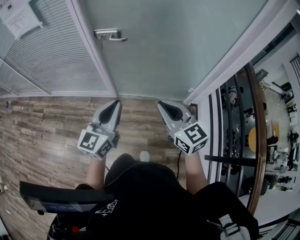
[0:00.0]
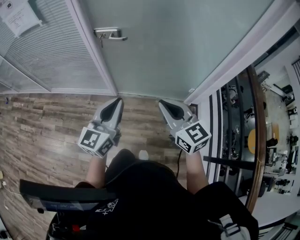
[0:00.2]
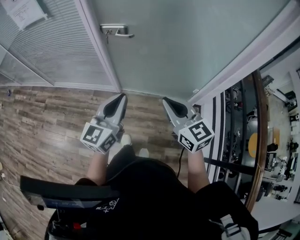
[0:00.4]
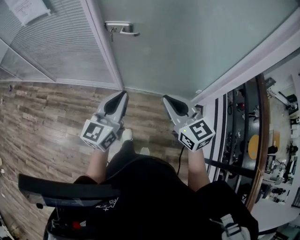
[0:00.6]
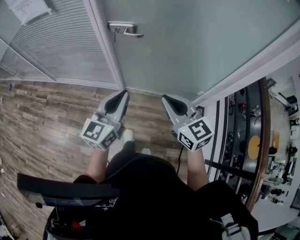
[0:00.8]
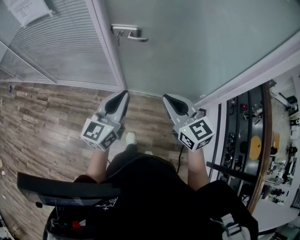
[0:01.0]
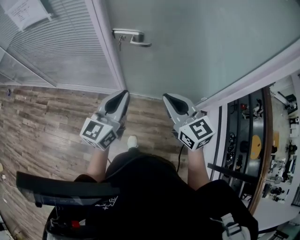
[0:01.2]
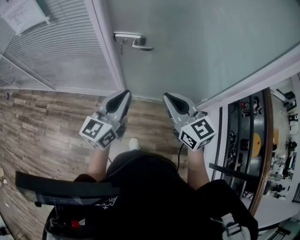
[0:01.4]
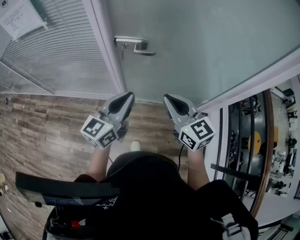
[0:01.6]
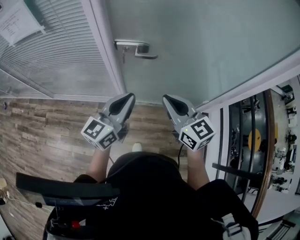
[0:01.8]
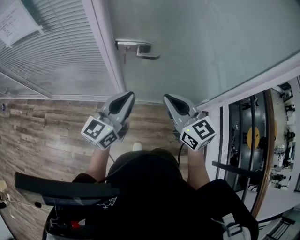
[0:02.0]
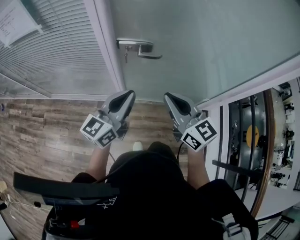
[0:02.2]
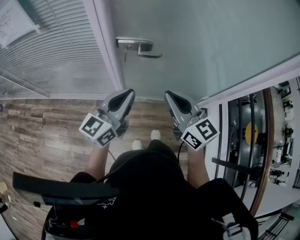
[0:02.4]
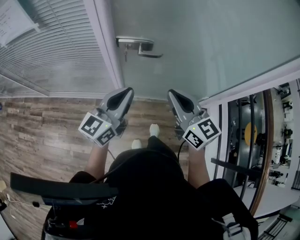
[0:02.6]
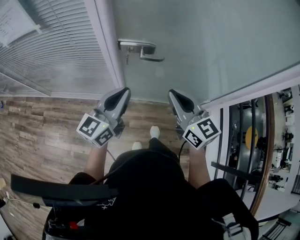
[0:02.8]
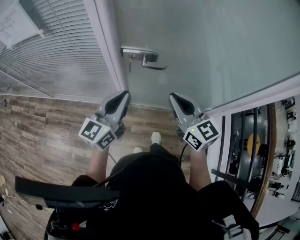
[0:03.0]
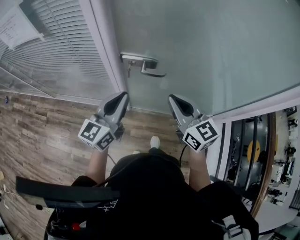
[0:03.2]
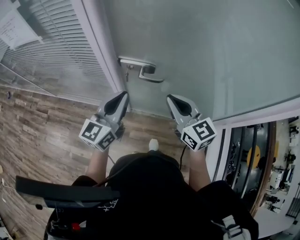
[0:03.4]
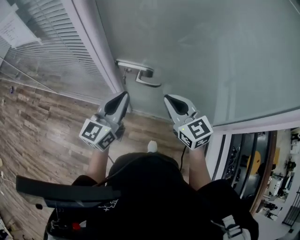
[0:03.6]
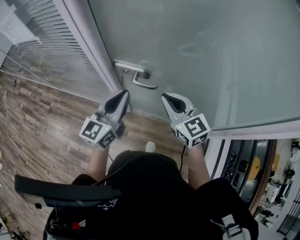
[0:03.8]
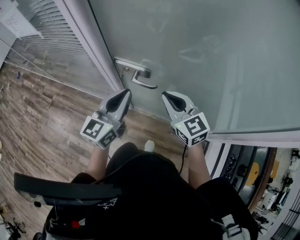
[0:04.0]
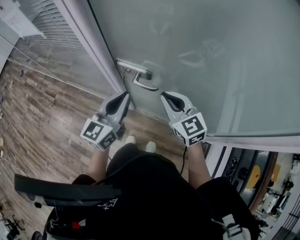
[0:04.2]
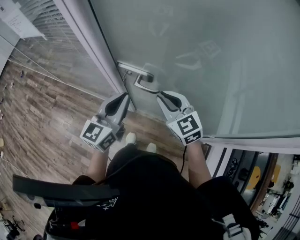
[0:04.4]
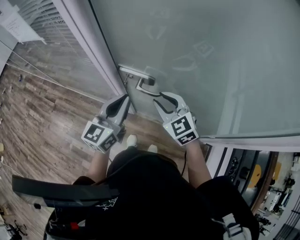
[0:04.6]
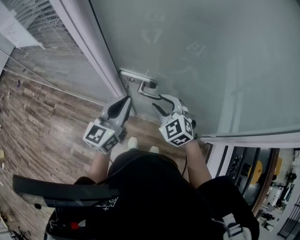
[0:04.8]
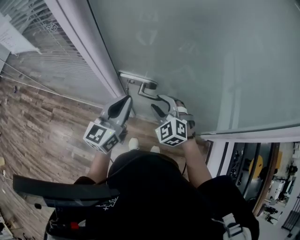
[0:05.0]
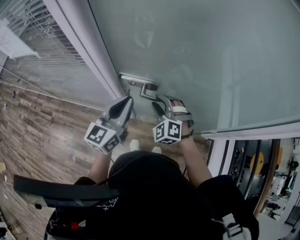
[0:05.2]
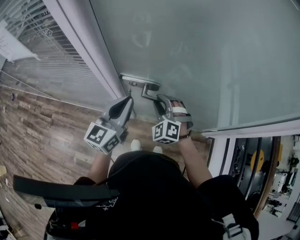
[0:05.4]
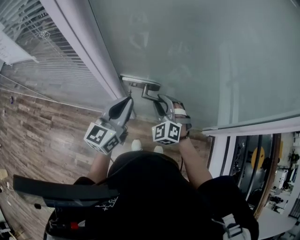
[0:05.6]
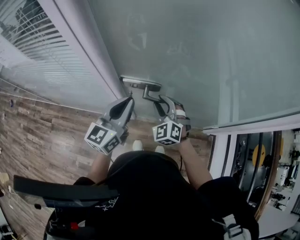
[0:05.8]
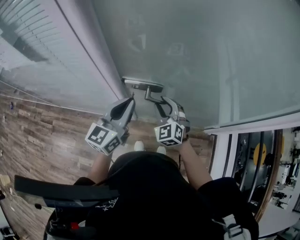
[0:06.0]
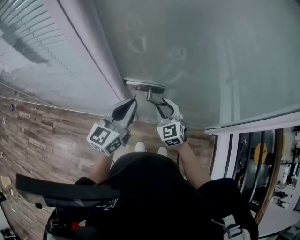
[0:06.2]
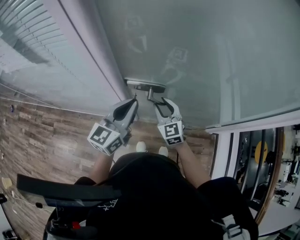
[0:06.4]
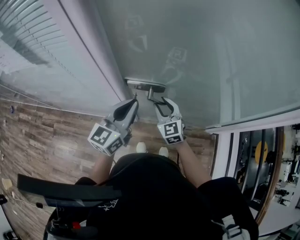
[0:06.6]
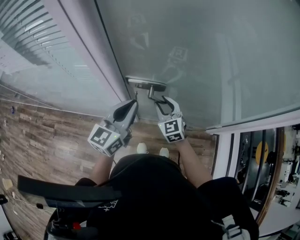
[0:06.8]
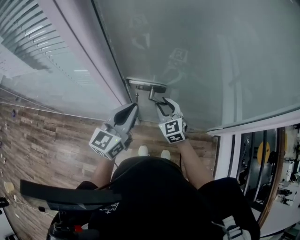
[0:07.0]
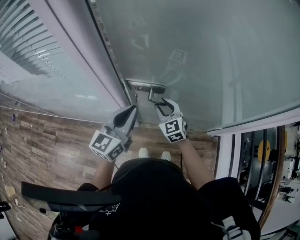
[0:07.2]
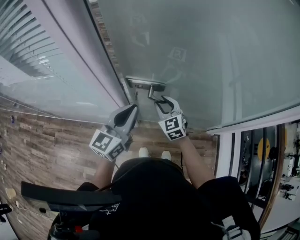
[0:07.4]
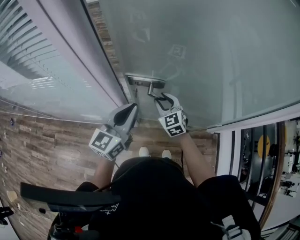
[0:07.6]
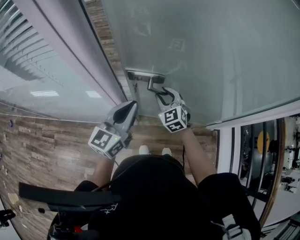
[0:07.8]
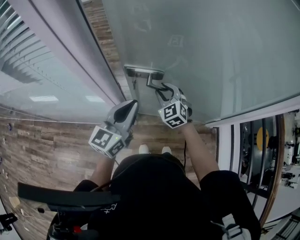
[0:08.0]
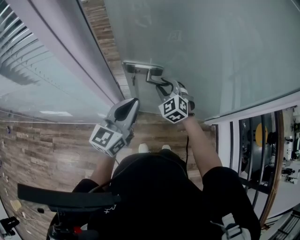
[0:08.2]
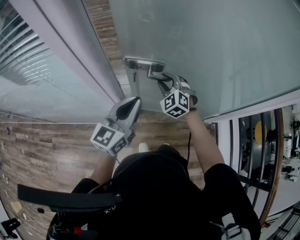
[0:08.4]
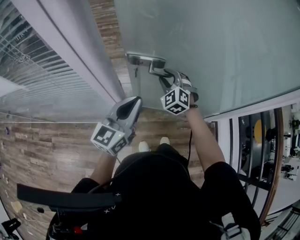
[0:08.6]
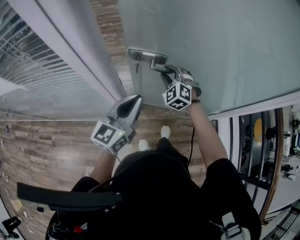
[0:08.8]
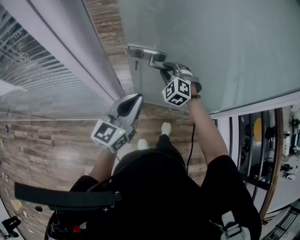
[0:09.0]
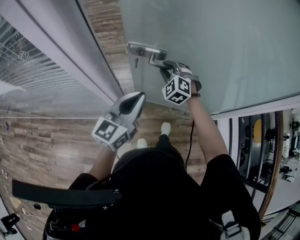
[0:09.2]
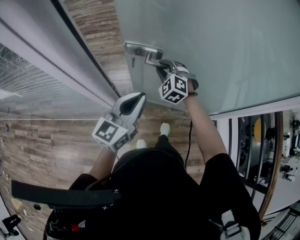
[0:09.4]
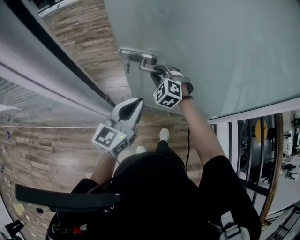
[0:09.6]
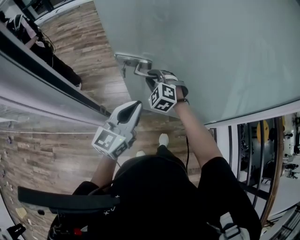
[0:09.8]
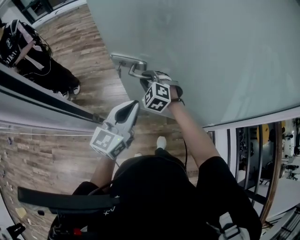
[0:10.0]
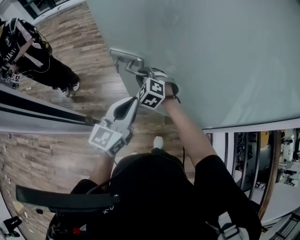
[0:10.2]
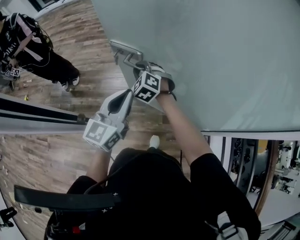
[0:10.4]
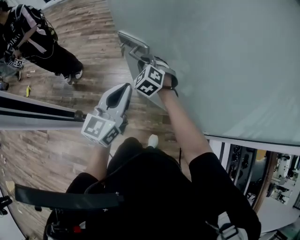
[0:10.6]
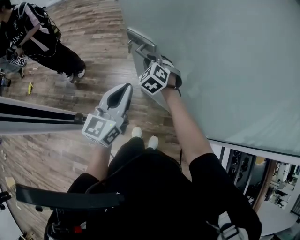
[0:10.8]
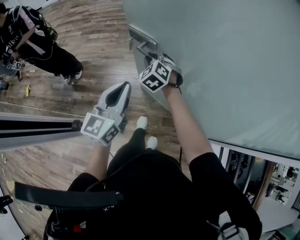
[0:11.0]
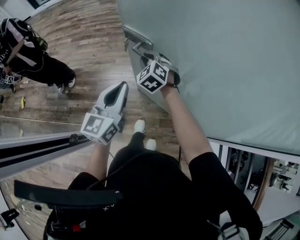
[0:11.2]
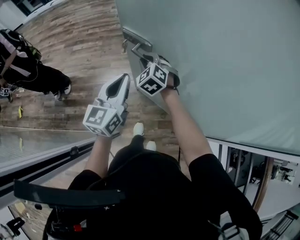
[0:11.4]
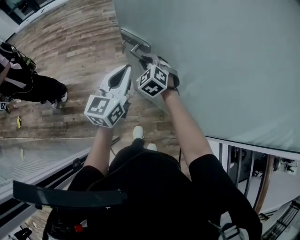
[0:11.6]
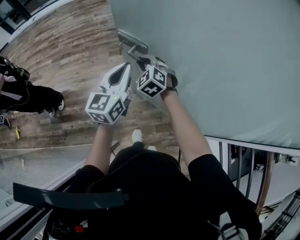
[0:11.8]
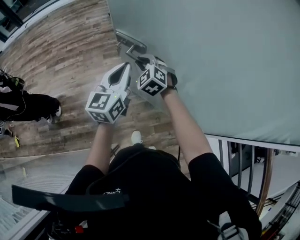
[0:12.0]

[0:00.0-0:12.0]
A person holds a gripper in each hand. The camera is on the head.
0:00.0 to 0:01.6: The left gripper is displaced forward by roughly 15 cm. The right gripper goes some 15 cm forward and to the left.
0:01.6 to 0:03.0: The right gripper shifts approximately 10 cm forward; the left gripper goes about 10 cm forward and to the left.
0:03.0 to 0:04.4: The right gripper moves forward and downward, roughly 15 cm, and changes its angle by about 30 degrees; the left gripper travels forward and to the right by about 10 cm.
0:04.4 to 0:06.0: The left gripper changes place by some 5 cm. Meanwhile the right gripper shifts roughly 10 cm downward, and rotates roughly 30 degrees.
0:06.0 to 0:07.6: The right gripper goes approximately 5 cm forward.
0:07.6 to 0:09.0: The right gripper moves forward, some 10 cm, and swivels some 40 degrees.
0:09.0 to 0:10.4: The right gripper shifts about 15 cm forward. The left gripper moves forward and to the right, approximately 15 cm.
0:10.4 to 0:12.0: The right gripper shifts about 25 cm forward and to the right. Meanwhile the left gripper moves forward, approximately 30 cm.

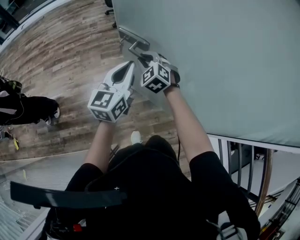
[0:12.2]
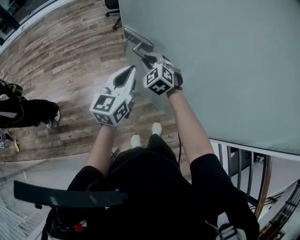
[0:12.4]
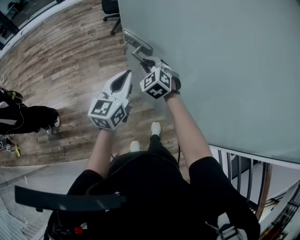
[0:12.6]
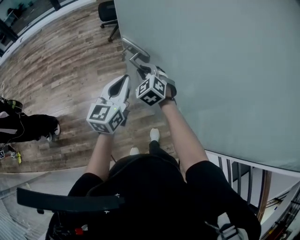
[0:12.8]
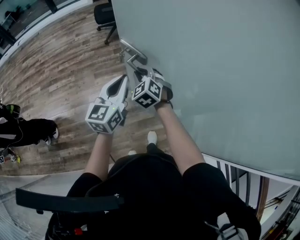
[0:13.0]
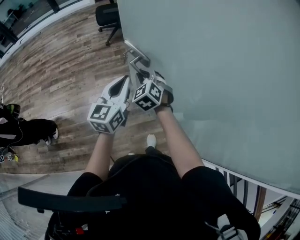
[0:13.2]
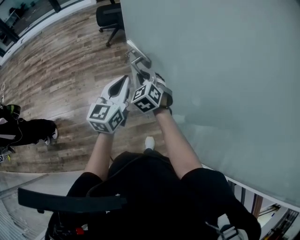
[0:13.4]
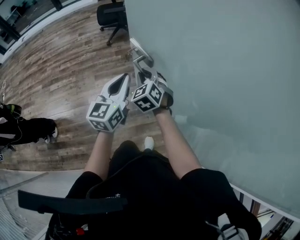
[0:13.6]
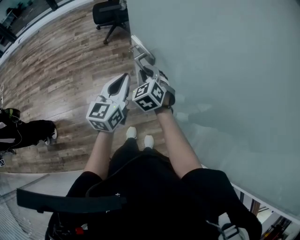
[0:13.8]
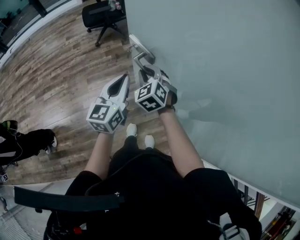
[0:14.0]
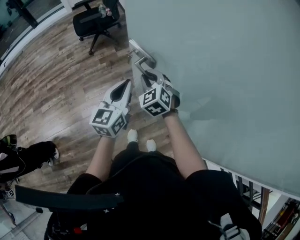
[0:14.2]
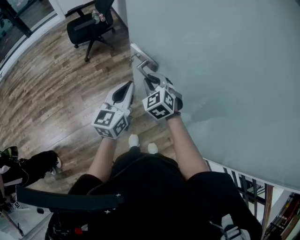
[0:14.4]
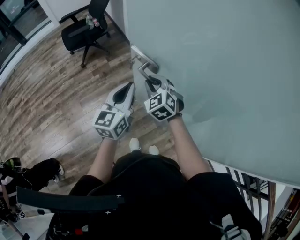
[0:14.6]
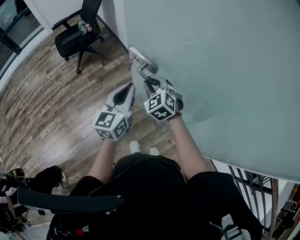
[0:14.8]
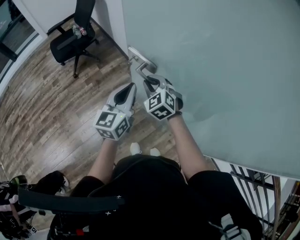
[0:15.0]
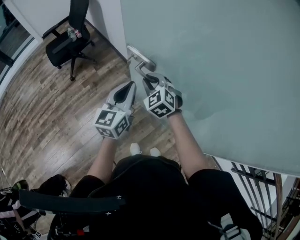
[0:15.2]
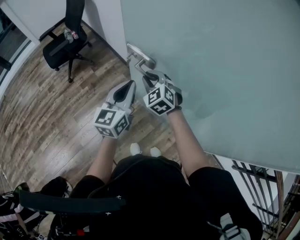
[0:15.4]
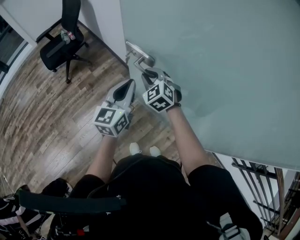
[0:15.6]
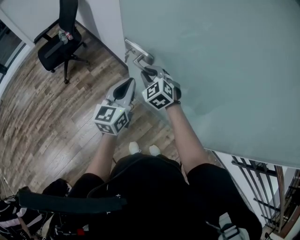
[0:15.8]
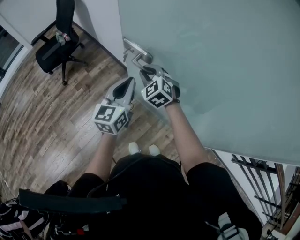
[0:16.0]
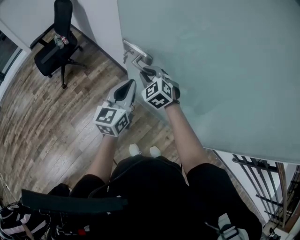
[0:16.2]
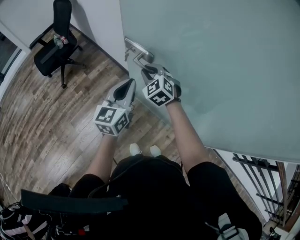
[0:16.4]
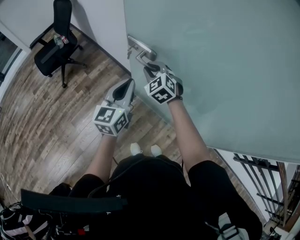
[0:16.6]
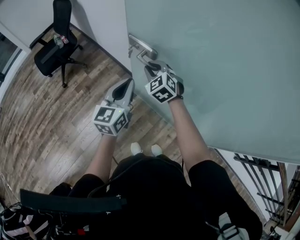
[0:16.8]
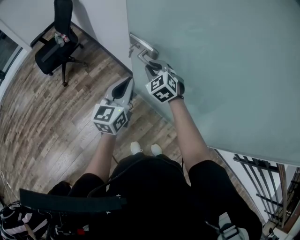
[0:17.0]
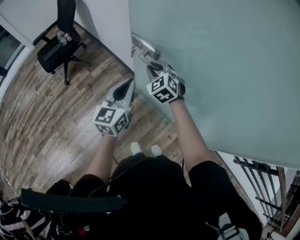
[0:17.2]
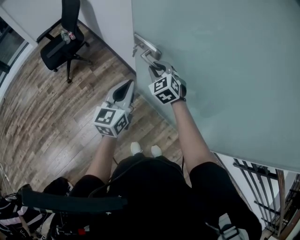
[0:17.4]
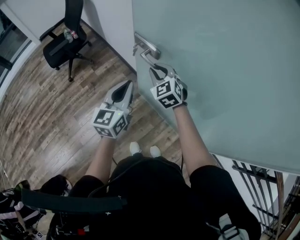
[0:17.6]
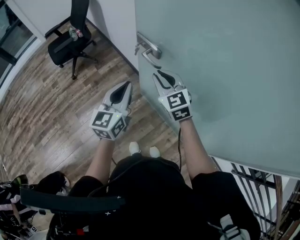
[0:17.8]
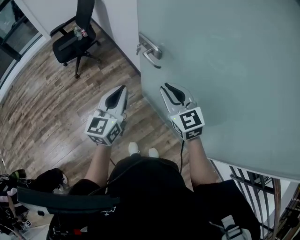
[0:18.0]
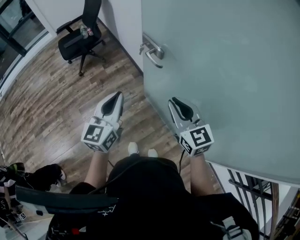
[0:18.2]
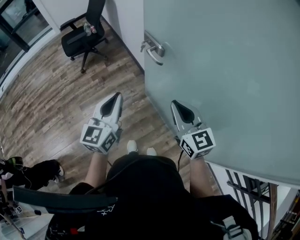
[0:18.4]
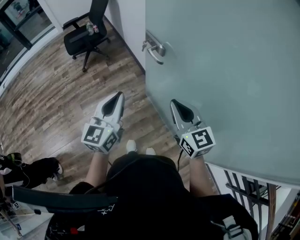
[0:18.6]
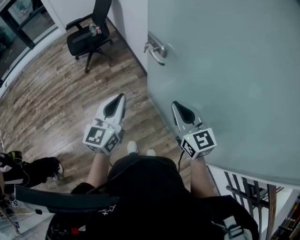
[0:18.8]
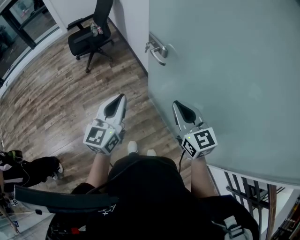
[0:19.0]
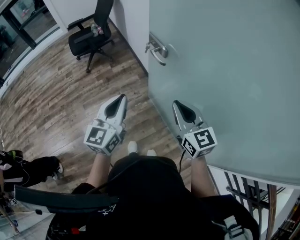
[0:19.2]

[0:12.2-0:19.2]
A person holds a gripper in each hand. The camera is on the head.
0:12.2 to 0:13.6: The two grippers go approximately 20 cm forward and to the right.
0:13.6 to 0:15.0: The left gripper travels forward and to the right by about 15 cm, and turns by about 30 degrees, while the right gripper travels to the right and forward by about 15 cm.
0:15.0 to 0:16.4: The left gripper changes place by some 5 cm. Meanwhile the right gripper goes approximately 5 cm forward.
0:16.4 to 0:17.8: The right gripper shifts some 10 cm backward and upward, and turns by approximately 20 degrees.
0:17.8 to 0:19.2: Both grippers travel together backward, about 15 cm. The right gripper swivels roughly 20 degrees.

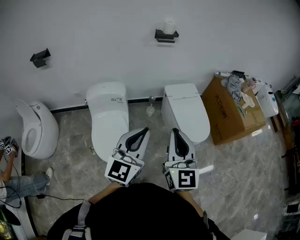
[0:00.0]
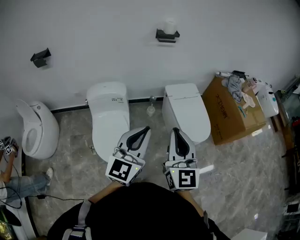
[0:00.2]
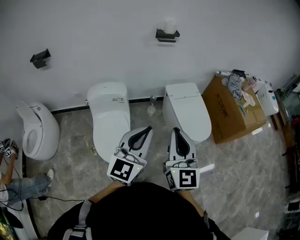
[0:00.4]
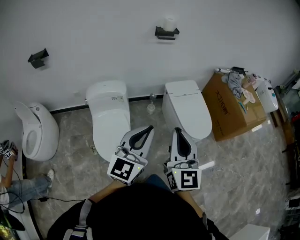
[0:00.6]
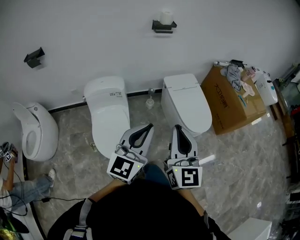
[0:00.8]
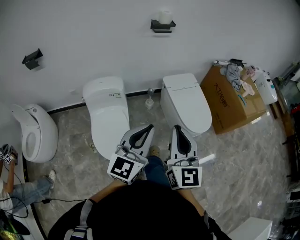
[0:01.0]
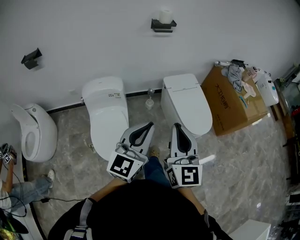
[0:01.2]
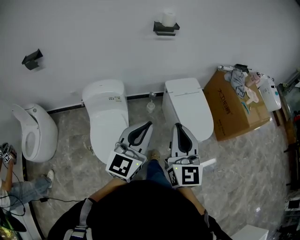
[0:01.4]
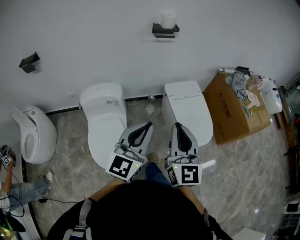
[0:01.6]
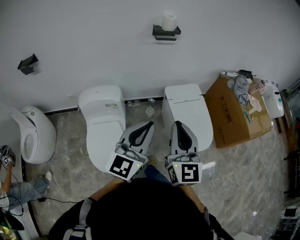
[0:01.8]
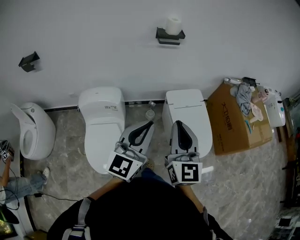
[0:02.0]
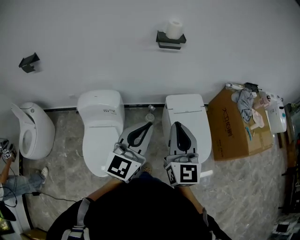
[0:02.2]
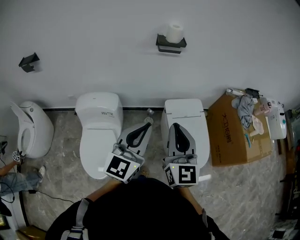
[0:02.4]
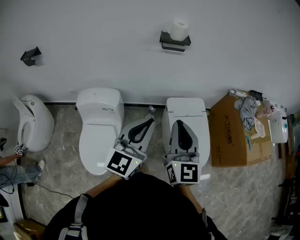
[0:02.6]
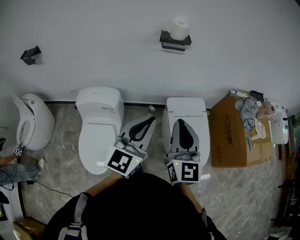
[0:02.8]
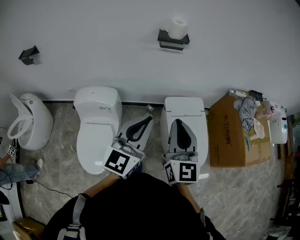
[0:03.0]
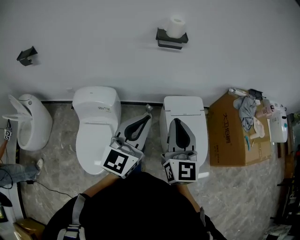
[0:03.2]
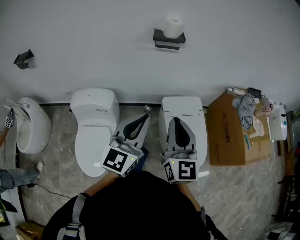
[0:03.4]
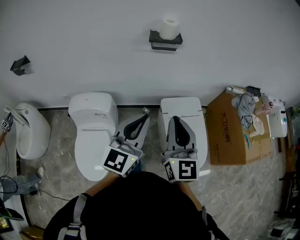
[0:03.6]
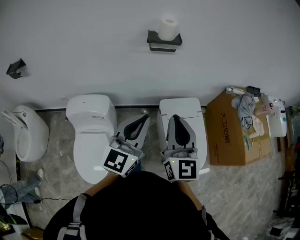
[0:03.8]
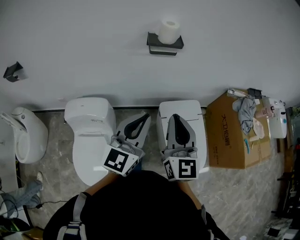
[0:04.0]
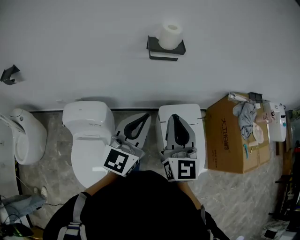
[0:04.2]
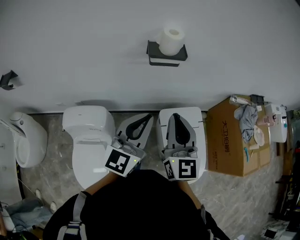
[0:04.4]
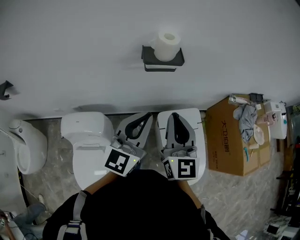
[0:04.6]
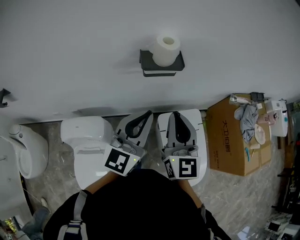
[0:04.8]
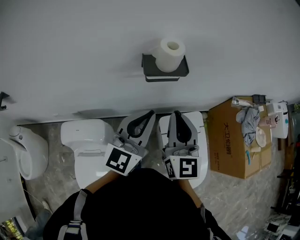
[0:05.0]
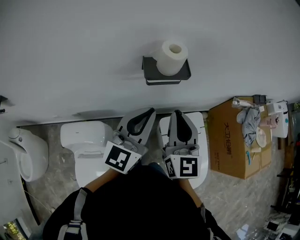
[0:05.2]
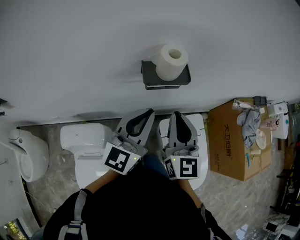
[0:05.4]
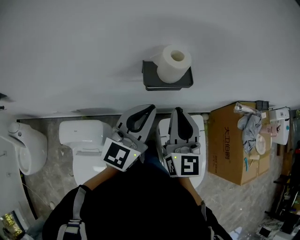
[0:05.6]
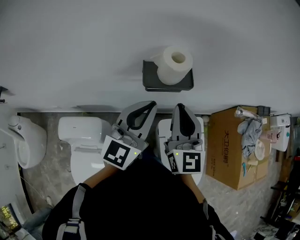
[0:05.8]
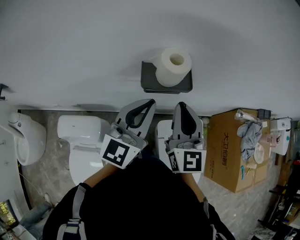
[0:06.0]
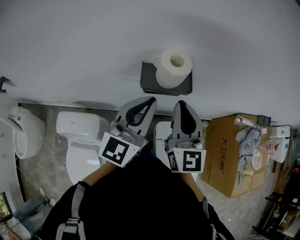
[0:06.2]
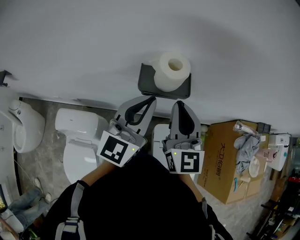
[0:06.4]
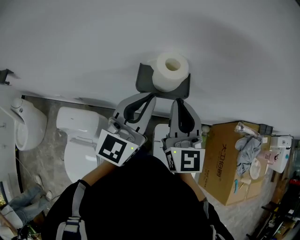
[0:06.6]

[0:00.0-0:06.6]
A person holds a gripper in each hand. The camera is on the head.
0:00.0 to 0:01.6: Both grippers travel together forward, some 10 cm.
0:01.6 to 0:03.2: The grippers both shift forward by some 20 cm.
0:03.2 to 0:05.0: Both grippers move forward, approximately 30 cm.
0:05.0 to 0:06.6: Both grippers move forward, approximately 15 cm.
